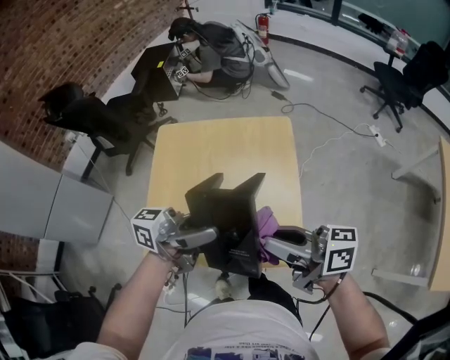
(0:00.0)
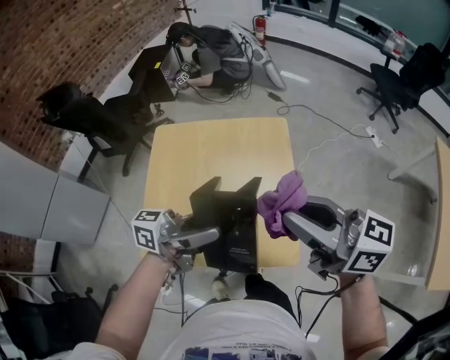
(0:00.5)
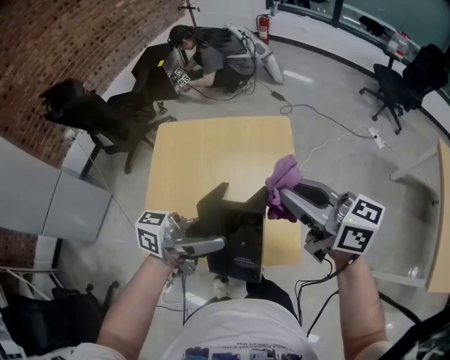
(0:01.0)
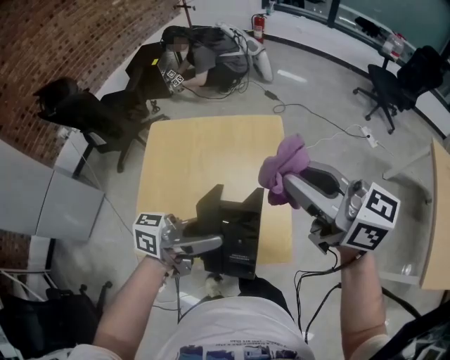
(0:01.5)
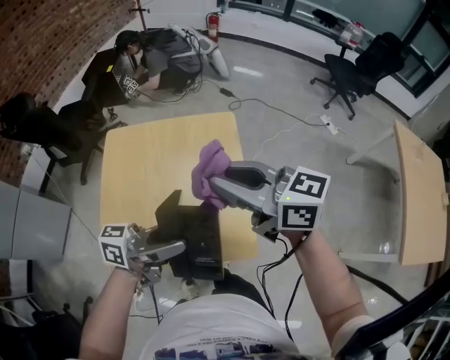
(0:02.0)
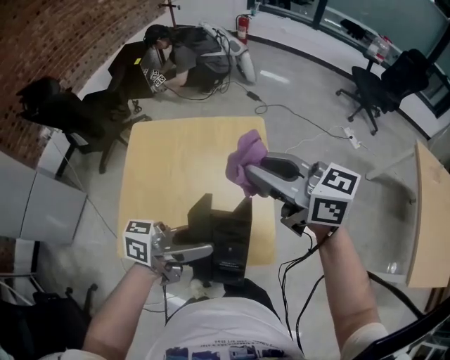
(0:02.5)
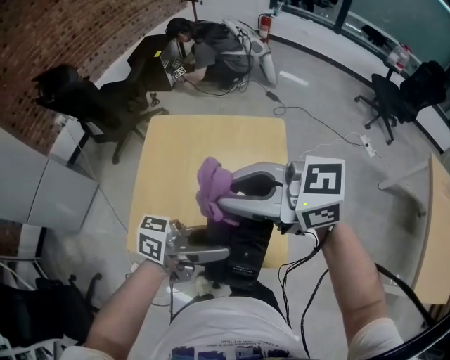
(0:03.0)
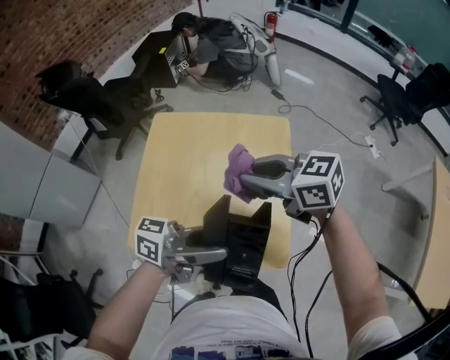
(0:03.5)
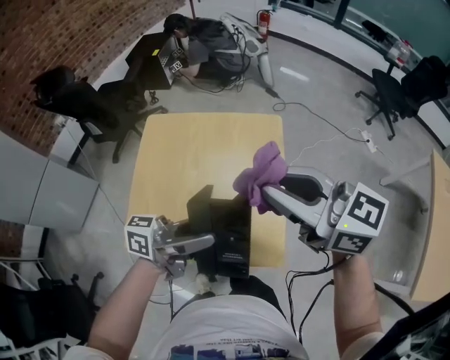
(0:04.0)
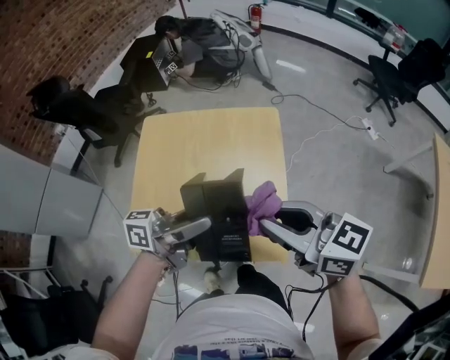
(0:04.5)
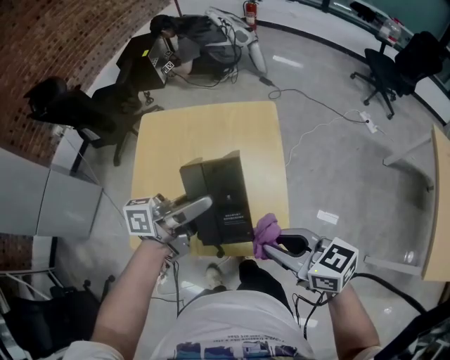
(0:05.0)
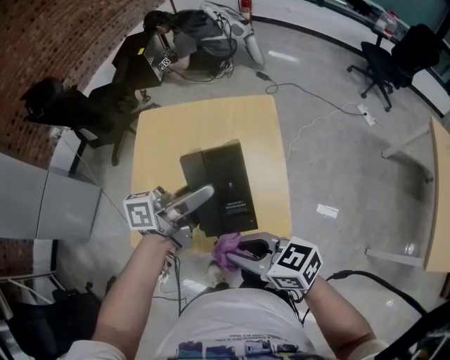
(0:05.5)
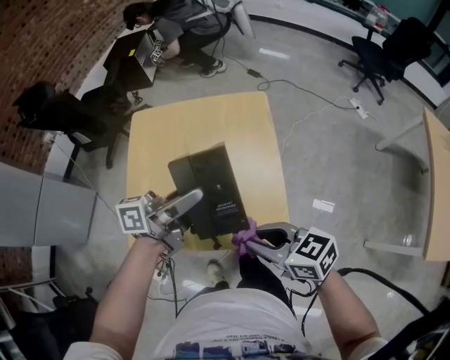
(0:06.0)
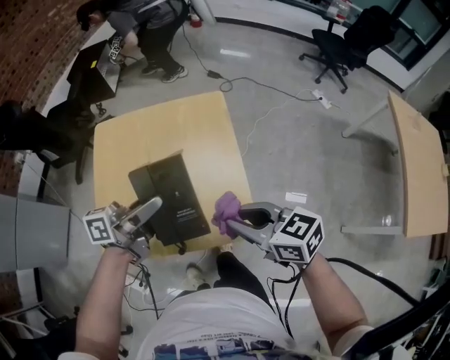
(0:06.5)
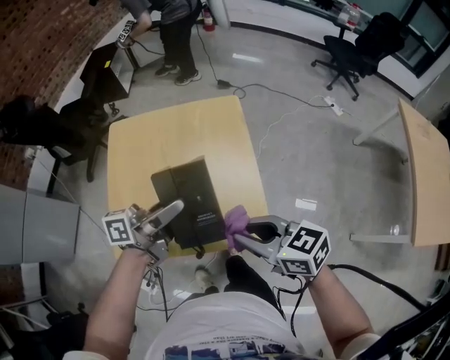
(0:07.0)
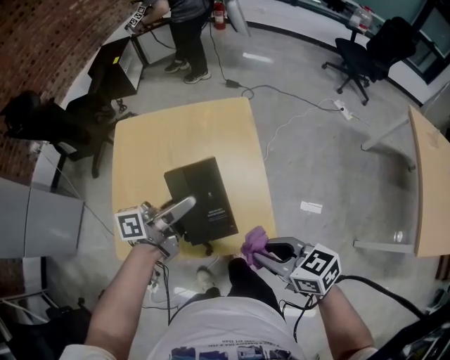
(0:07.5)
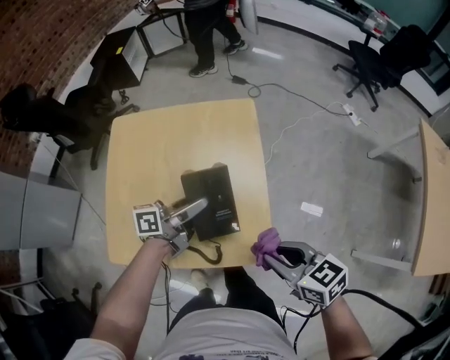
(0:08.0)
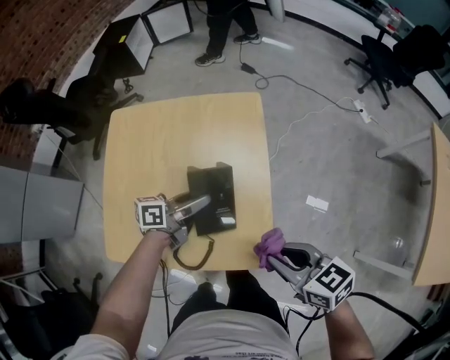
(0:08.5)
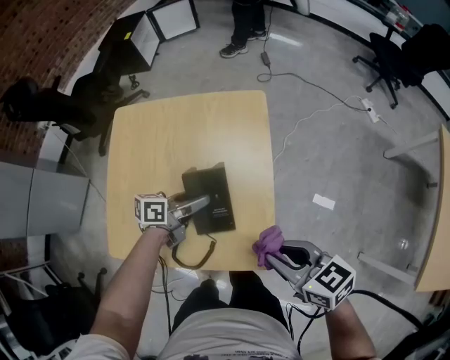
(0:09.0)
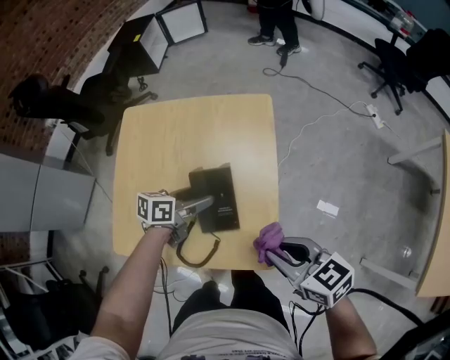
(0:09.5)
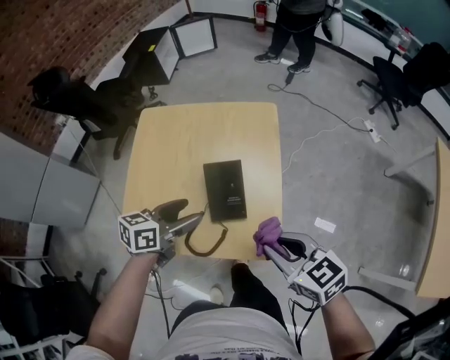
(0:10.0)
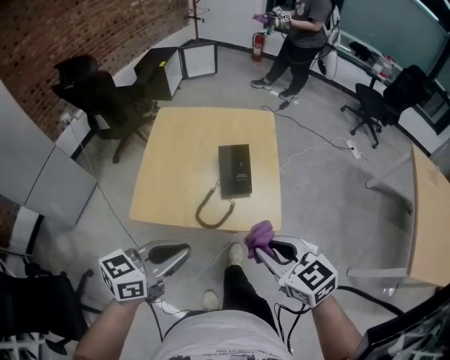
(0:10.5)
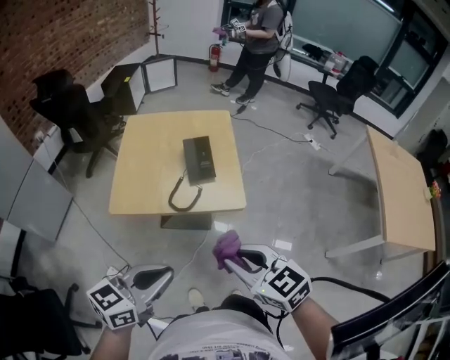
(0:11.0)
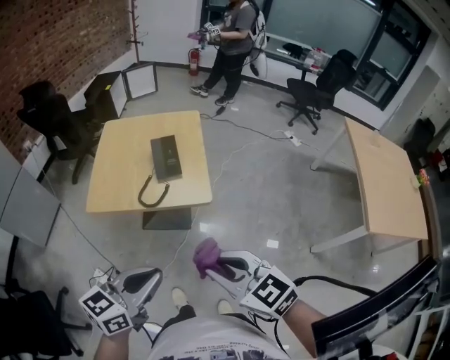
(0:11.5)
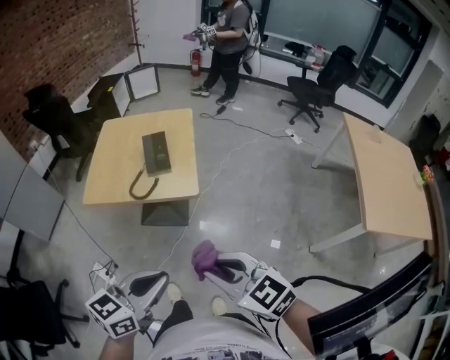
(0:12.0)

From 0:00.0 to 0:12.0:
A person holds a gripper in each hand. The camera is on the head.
From 0:00.0 to 0:02.0: The left gripper moves about 5 cm. Meanwhile the right gripper moves up and down over some 10 cm, changing direction 3 times, and rotates some 30 degrees.
From 0:02.0 to 0:04.0: The right gripper goes downward and returns, about 10 cm each way.
From 0:04.0 to 0:06.0: The left gripper ends up about 5 cm from where it was; the right gripper goes some 20 cm downward, and turns by approximately 30 degrees.
From 0:06.0 to 0:08.0: The left gripper moves downward, about 15 cm. The right gripper ends up about 10 cm from where it was.
From 0:08.0 to 0:10.0: The left gripper shifts approximately 10 cm backward and to the left, travels downward and back again, approximately 5 cm each way, rotates approximately 30 degrees, and opens up.
From 0:10.0 to 0:12.0: Both grippers move backward, about 40 cm. The left gripper turns by some 20 degrees, and closes its fingers.

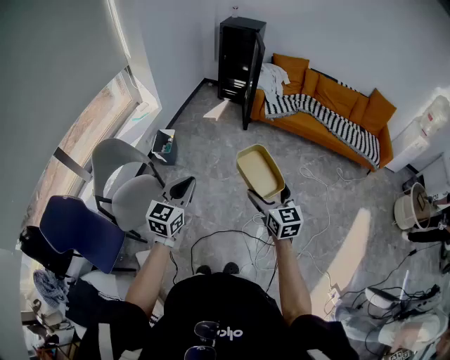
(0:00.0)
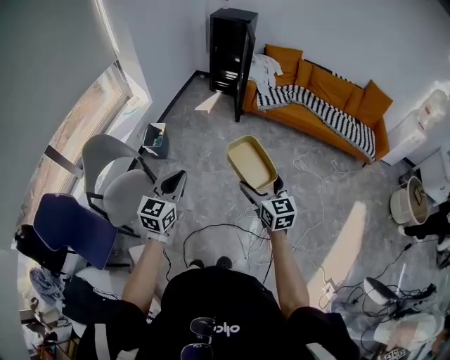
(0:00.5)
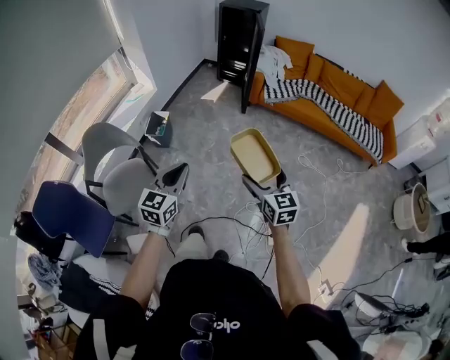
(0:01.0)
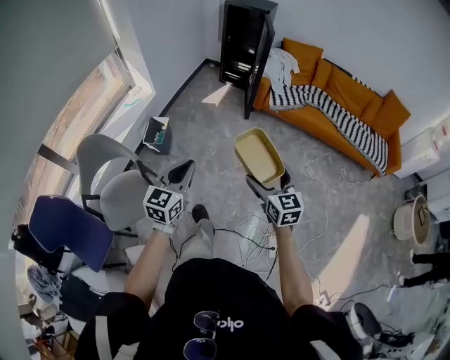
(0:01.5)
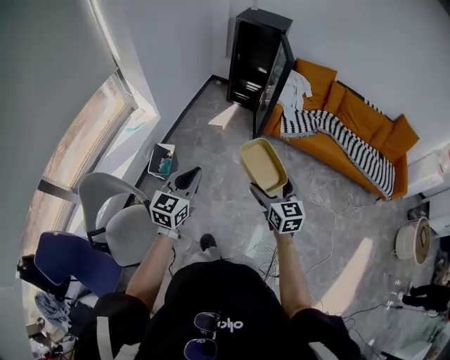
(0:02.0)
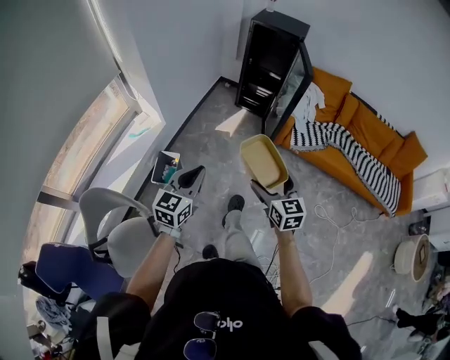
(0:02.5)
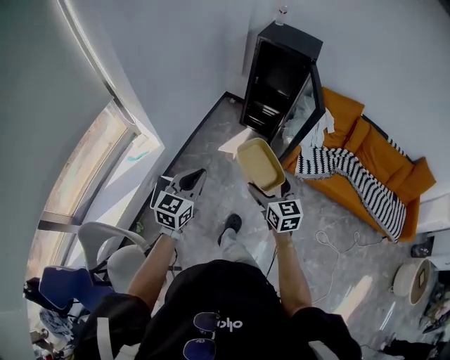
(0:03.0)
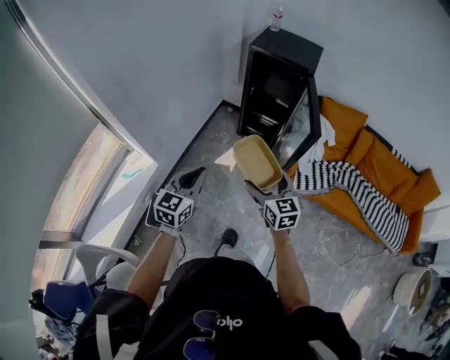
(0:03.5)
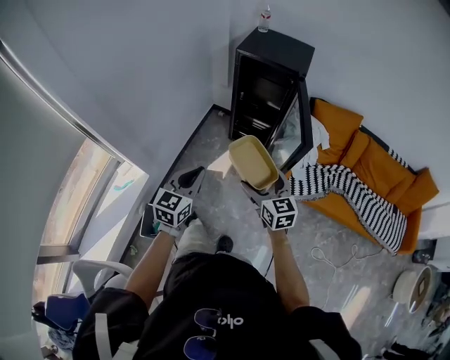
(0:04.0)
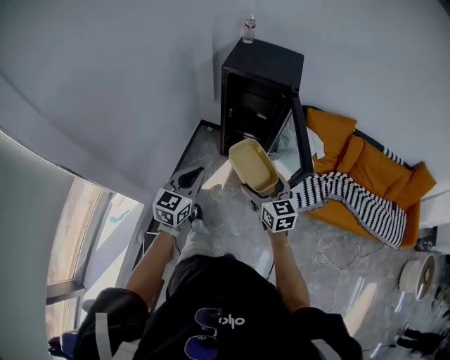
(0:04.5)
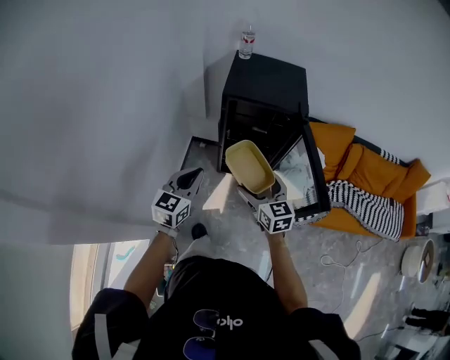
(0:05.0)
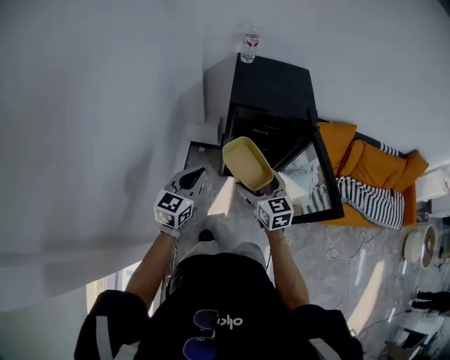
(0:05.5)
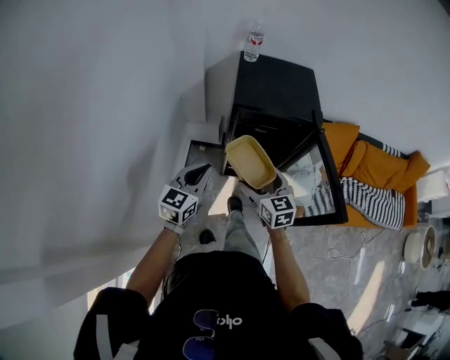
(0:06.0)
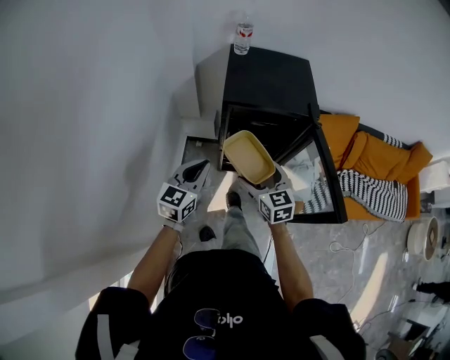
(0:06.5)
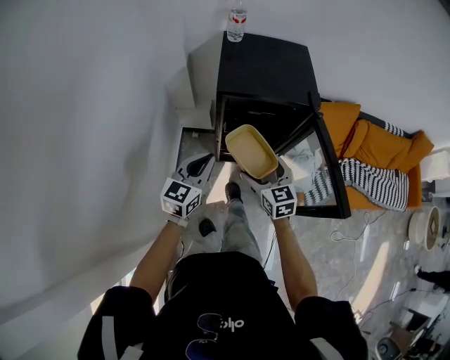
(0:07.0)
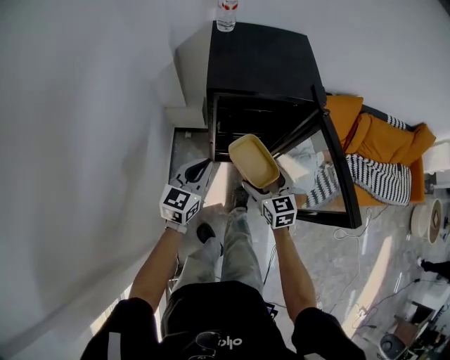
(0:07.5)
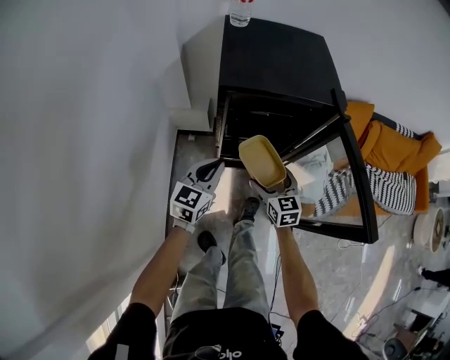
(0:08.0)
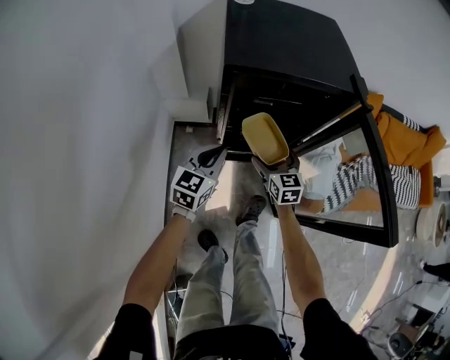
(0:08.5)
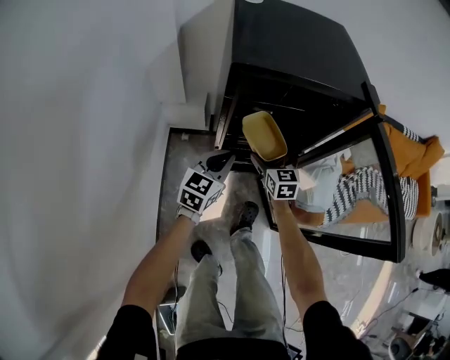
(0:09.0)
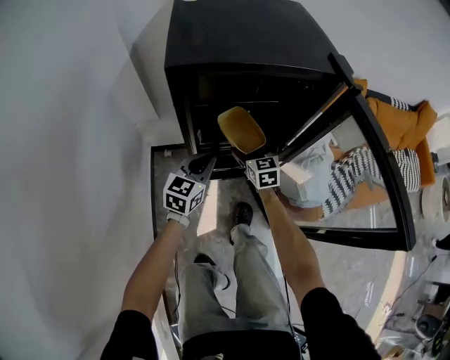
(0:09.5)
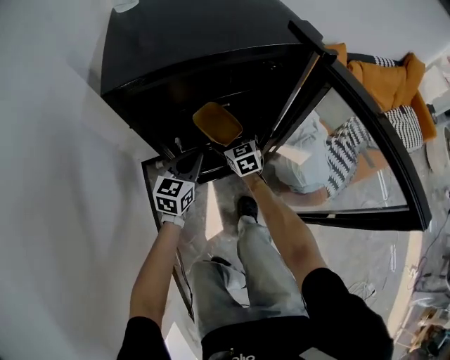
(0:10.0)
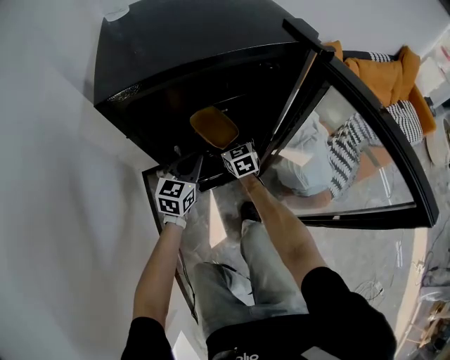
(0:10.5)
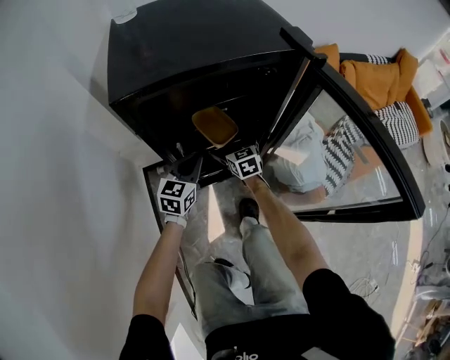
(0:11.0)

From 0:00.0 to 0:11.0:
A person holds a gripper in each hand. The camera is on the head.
From 0:00.0 to 0:02.0: The grippers both shift forward by roughly 40 cm.
From 0:02.0 to 0:03.5: Both grippers are carried forward, some 50 cm.
From 0:03.5 to 0:05.5: The two grippers travel together, forward, approximately 50 cm. The left gripper turns by some 20 degrees.
From 0:05.5 to 0:07.5: Both grippers travel together downward, forward and to the right, about 20 cm.
From 0:07.5 to 0:09.0: Both grippers travel together downward and forward, roughly 25 cm.
From 0:09.0 to 0:11.0: The left gripper shifts roughly 10 cm forward and downward; the right gripper goes some 15 cm downward and forward.

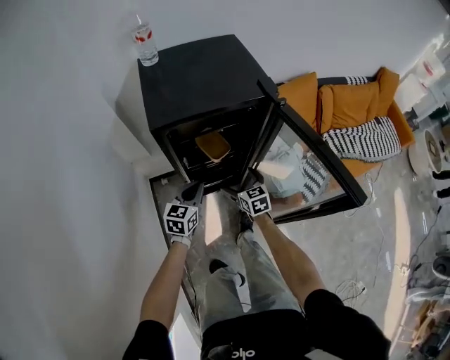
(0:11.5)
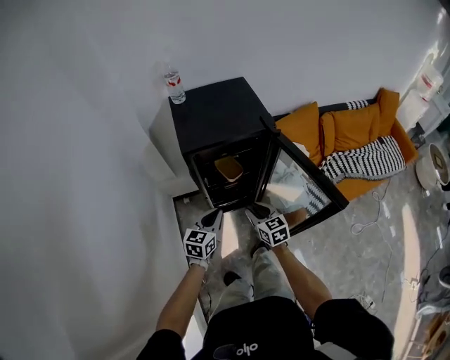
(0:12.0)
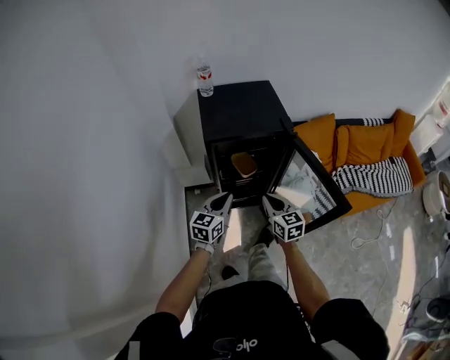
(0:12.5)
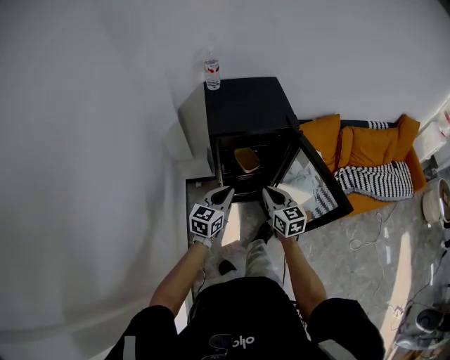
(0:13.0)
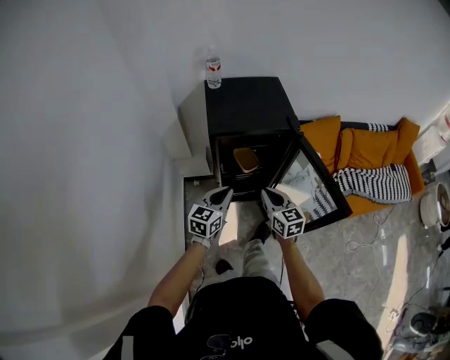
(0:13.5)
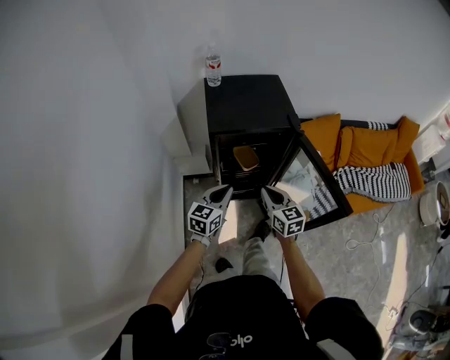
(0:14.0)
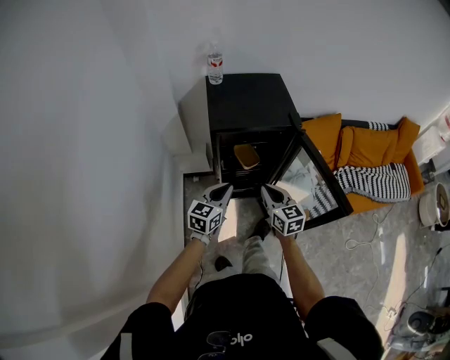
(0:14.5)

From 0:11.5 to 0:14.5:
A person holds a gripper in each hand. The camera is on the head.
From 0:11.5 to 0:13.0: The grippers both shift upward and backward by some 25 cm. The right gripper closes its fingers.
From 0:13.0 to 0:14.5: The two grippers keep their place.

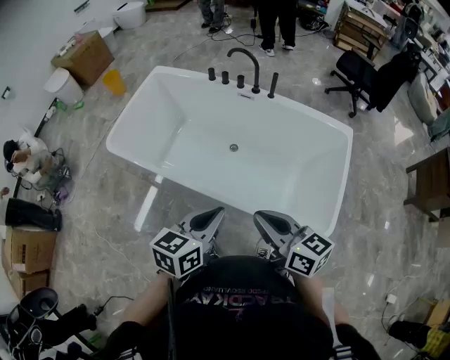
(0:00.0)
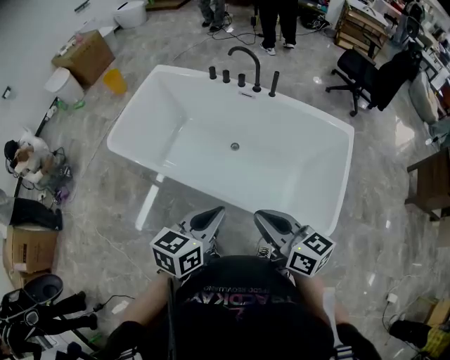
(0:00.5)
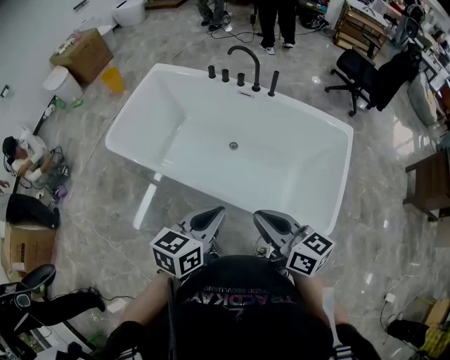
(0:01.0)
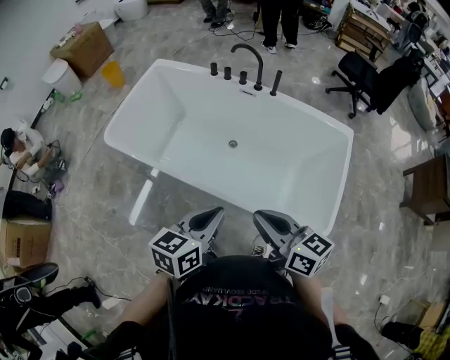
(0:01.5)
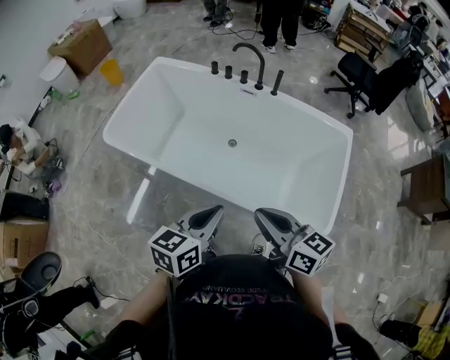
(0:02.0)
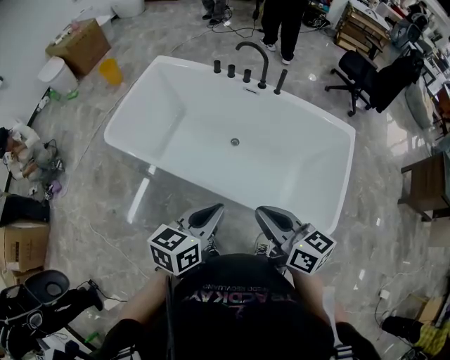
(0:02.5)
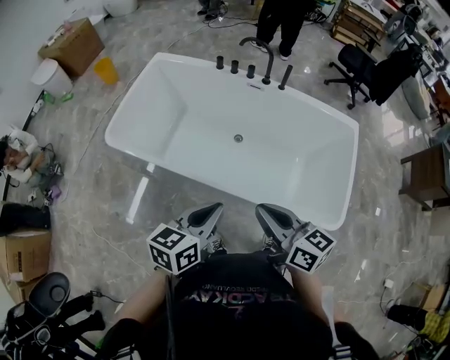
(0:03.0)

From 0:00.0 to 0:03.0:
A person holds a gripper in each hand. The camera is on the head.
From 0:00.0 to 0:01.5: The two grippers keep their place.
From 0:01.5 to 0:03.0: The grippers both shift to the left by approximately 10 cm.
